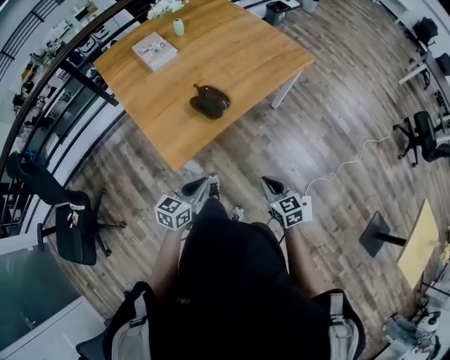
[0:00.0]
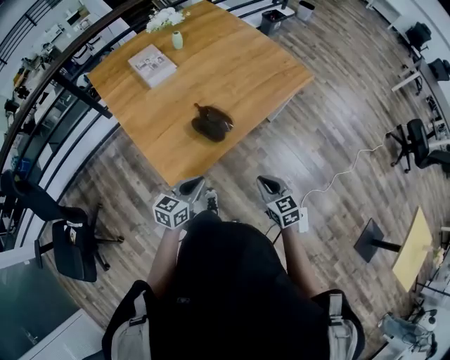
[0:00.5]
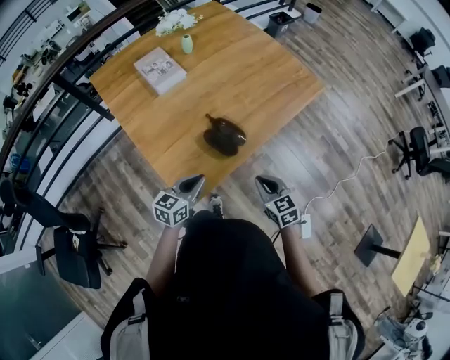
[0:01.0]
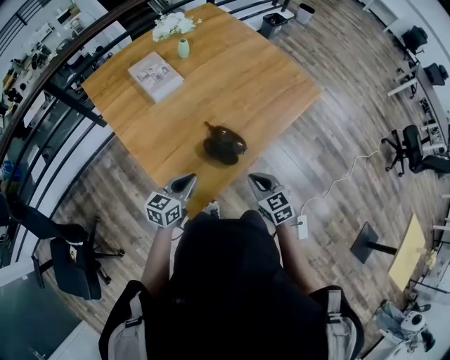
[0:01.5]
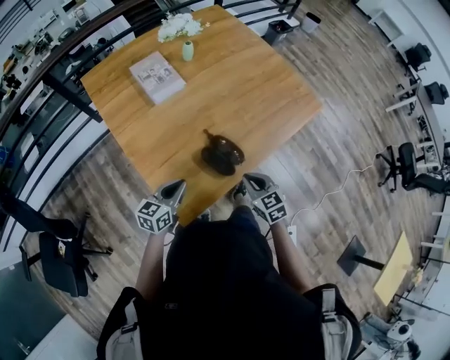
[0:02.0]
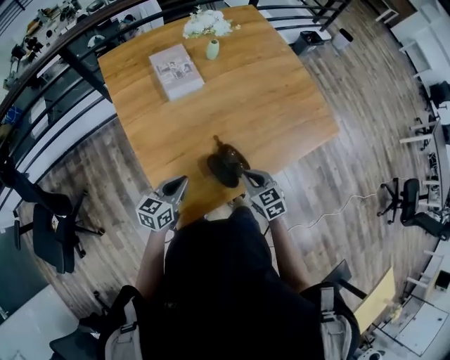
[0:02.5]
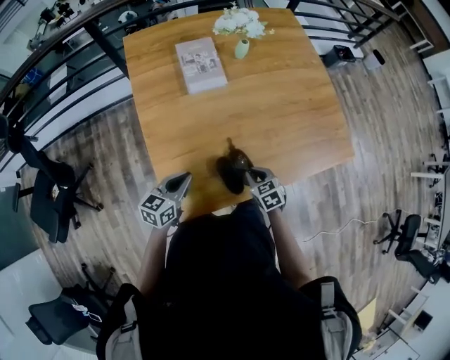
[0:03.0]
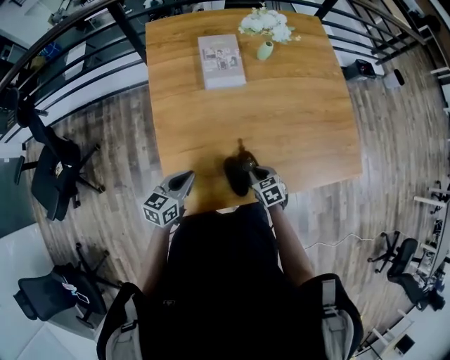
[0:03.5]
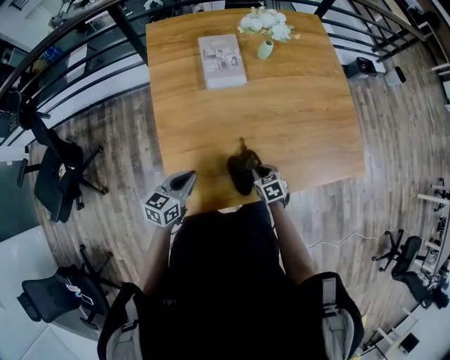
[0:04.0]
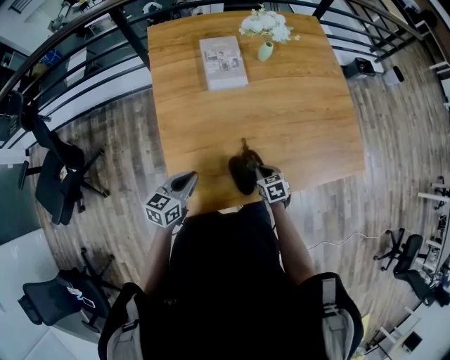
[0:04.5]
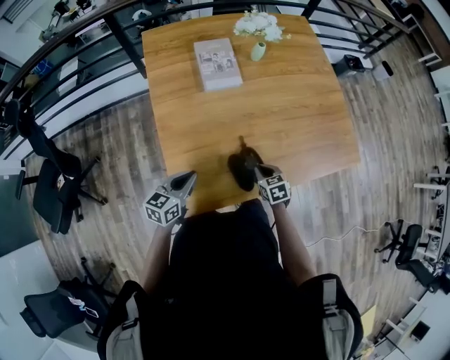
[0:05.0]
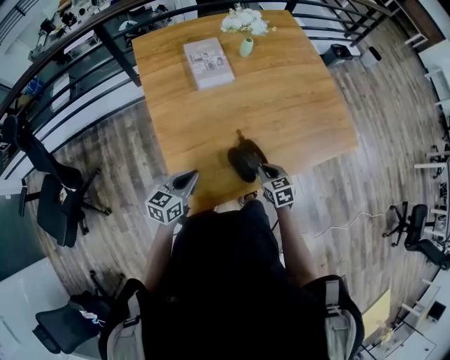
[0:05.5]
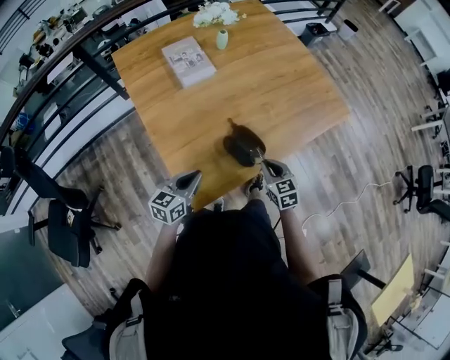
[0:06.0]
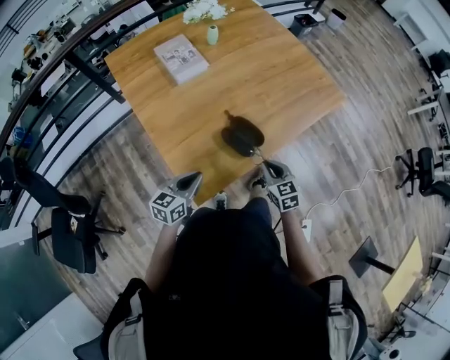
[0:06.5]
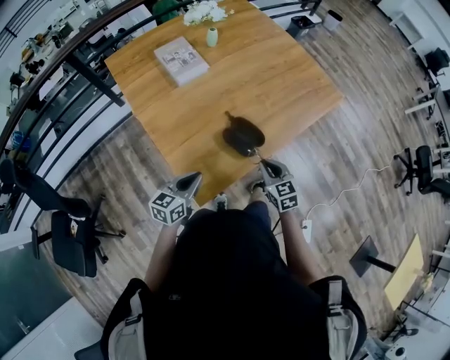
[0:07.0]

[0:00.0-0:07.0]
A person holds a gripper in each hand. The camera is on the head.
0:00.0 to 0:02.0: The two grippers go about 30 cm forward and to the left.
0:02.0 to 0:03.5: The right gripper ends up roughly 20 cm from where it was, and swivels roughly 30 degrees, while the left gripper ends up roughly 5 cm from where it was, and changes its angle by roughly 30 degrees.
0:03.5 to 0:05.0: The grippers move only a little.
0:05.0 to 0:07.0: The right gripper goes about 15 cm backward and upward, and swivels roughly 30 degrees, while the left gripper is displaced backward by roughly 10 cm, and rotates approximately 20 degrees.

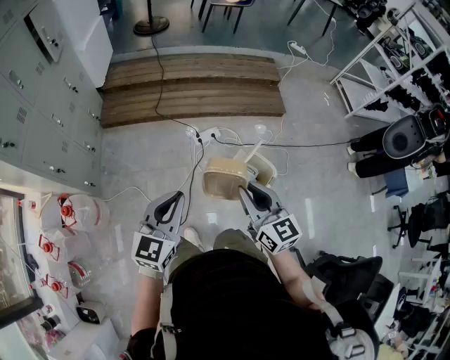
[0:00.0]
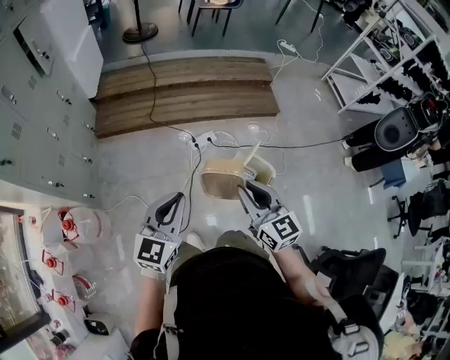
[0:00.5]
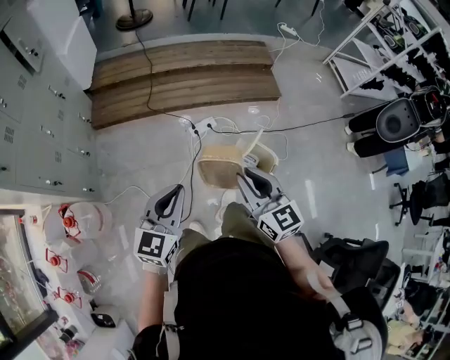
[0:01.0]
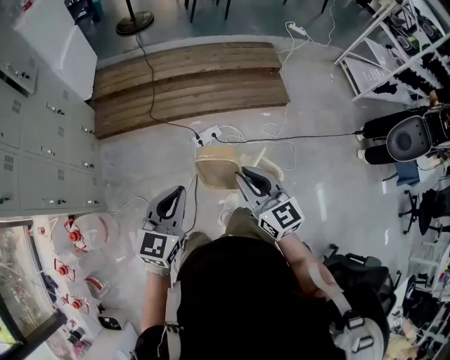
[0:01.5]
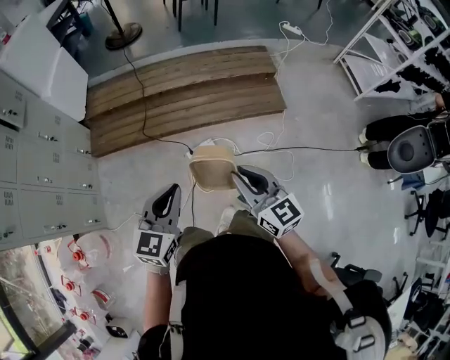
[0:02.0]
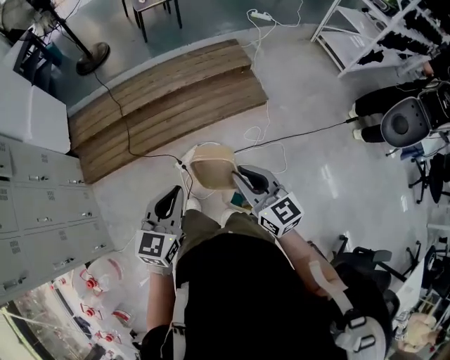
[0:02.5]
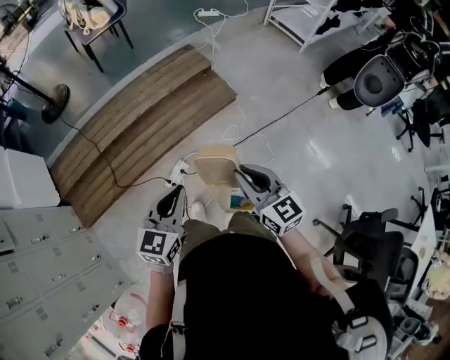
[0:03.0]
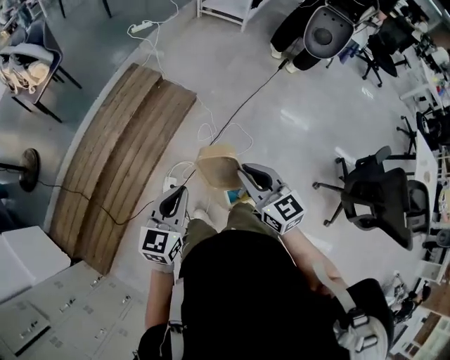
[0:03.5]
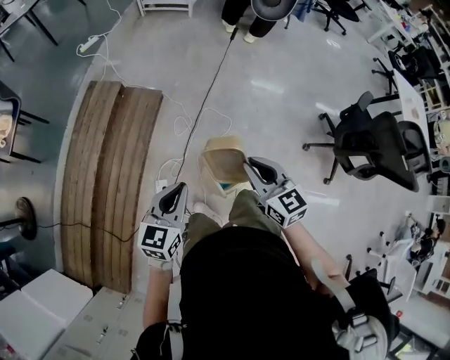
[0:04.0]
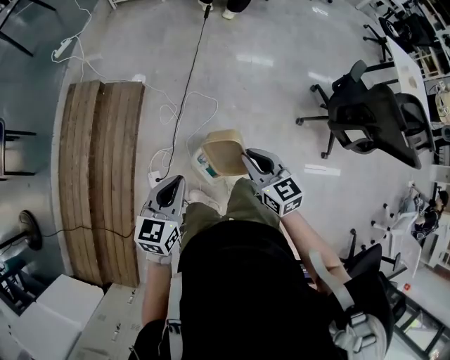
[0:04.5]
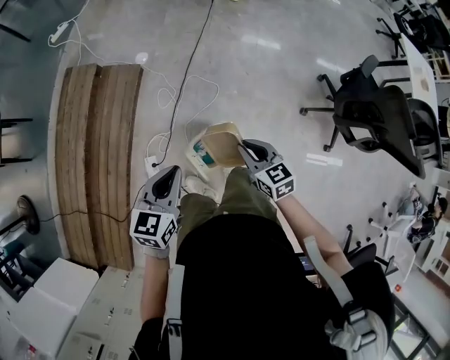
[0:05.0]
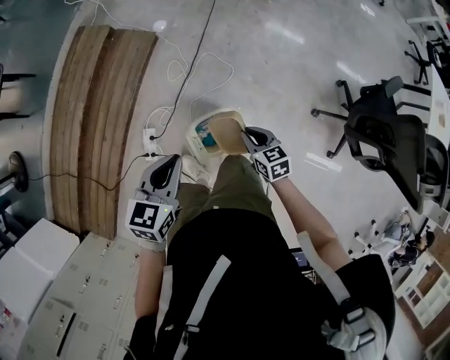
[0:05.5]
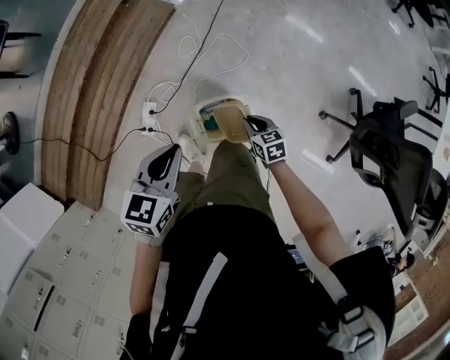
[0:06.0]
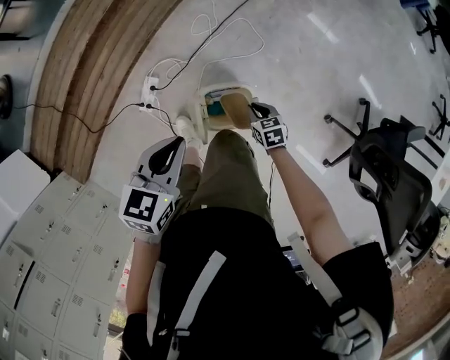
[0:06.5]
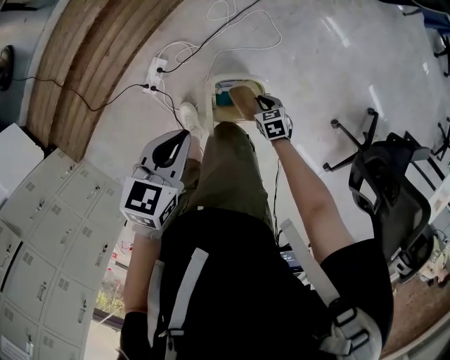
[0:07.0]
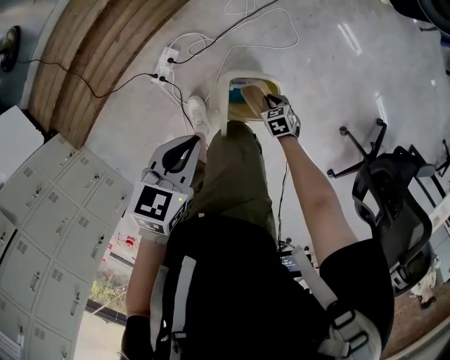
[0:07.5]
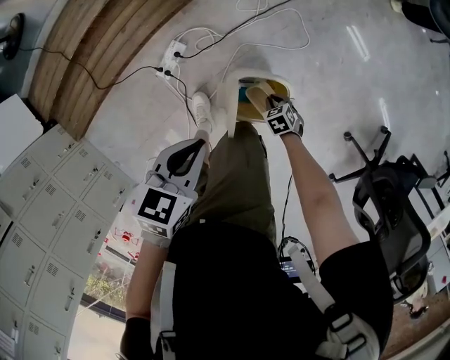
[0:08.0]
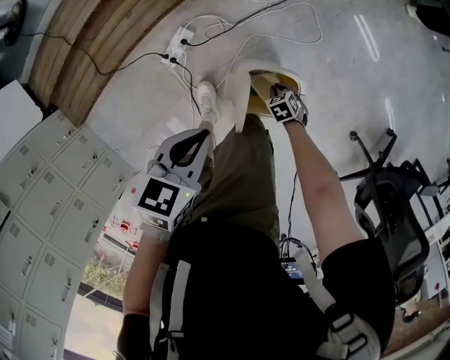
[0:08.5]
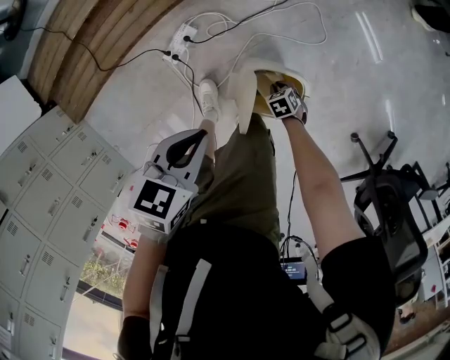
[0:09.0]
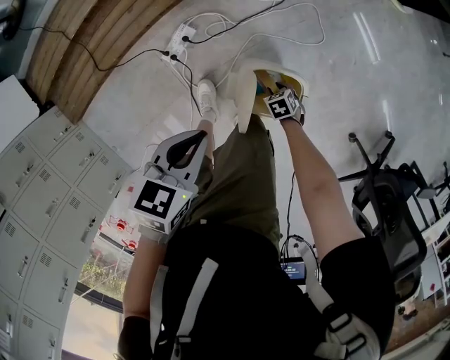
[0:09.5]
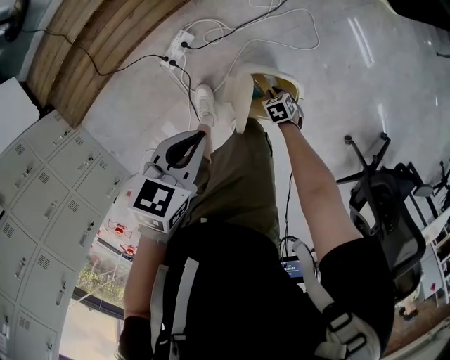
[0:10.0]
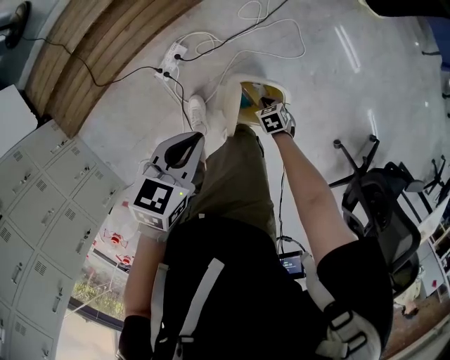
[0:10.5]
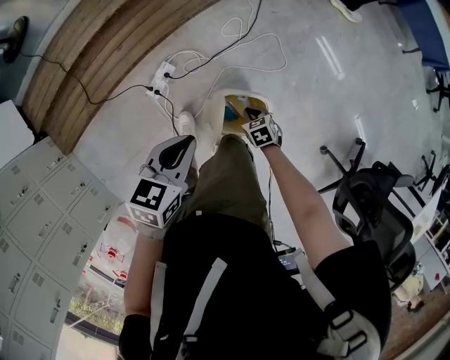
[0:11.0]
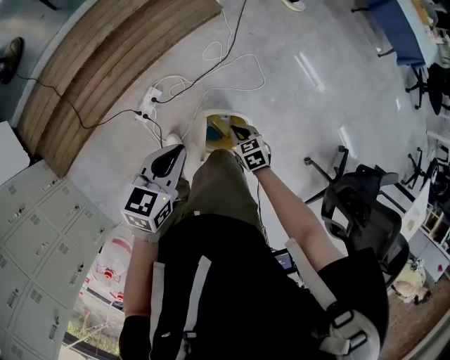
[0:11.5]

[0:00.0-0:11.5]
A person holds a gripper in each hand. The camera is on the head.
0:00.0 to 0:02.0: The grippers both shift forward and to the right by approximately 35 cm.
0:02.0 to 0:04.0: The right gripper moves some 20 cm, and rotates roughly 70 degrees; the left gripper moves roughly 30 cm, and rotates some 70 degrees.
0:04.0 to 0:06.0: The left gripper is displaced downward and to the right by some 15 cm, and turns by about 20 degrees, while the right gripper heads downward, covering about 35 cm, and points its fingers approximately 30 degrees further downward.
0:06.0 to 0:07.5: The left gripper travels downward and to the left by approximately 10 cm. The right gripper goes some 20 cm downward, and swivels about 30 degrees.
0:07.5 to 0:09.5: The right gripper is displaced downward by some 10 cm, and opens up, while the left gripper ends up approximately 5 cm from where it was.
0:09.5 to 0:11.5: The right gripper moves upward, approximately 25 cm, changes its angle by some 20 degrees, and closes its fingers, while the left gripper moves upward, about 10 cm.

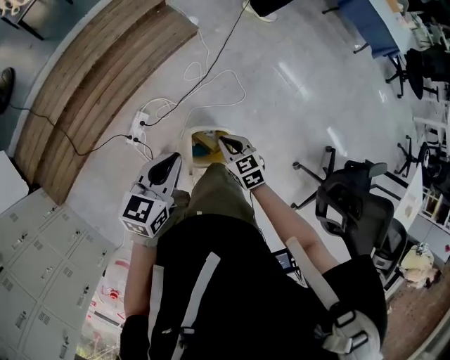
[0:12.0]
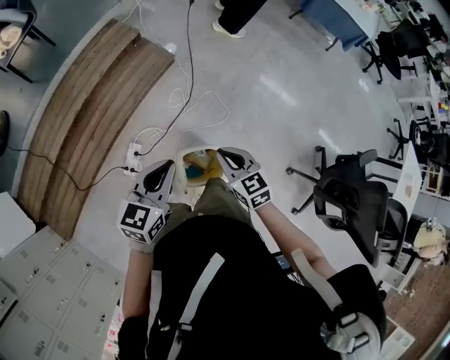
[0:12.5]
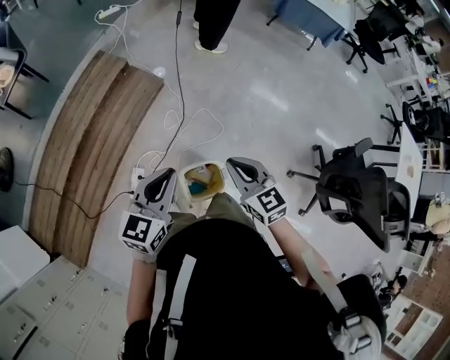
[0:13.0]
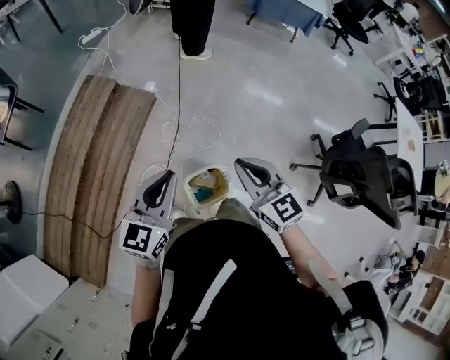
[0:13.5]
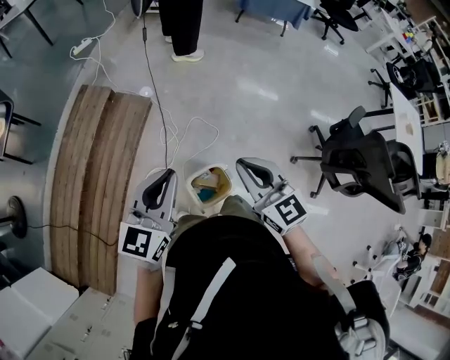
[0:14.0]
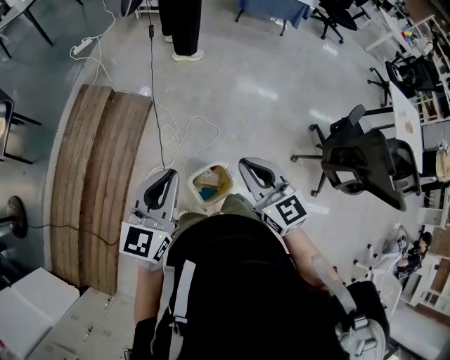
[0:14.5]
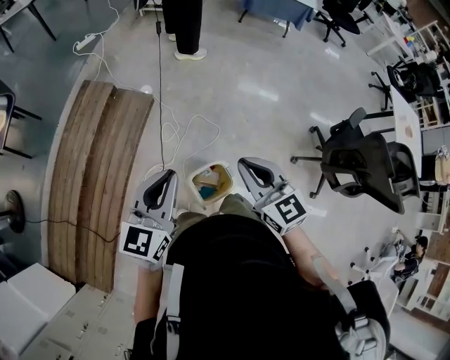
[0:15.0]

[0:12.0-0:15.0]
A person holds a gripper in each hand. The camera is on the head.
0:12.0 to 0:13.5: The right gripper travels upward by roughly 30 cm, and changes its angle by approximately 40 degrees; the left gripper heads upward, covering about 15 cm, and turns by about 30 degrees.
0:13.5 to 0:15.0: The grippers move only a little.

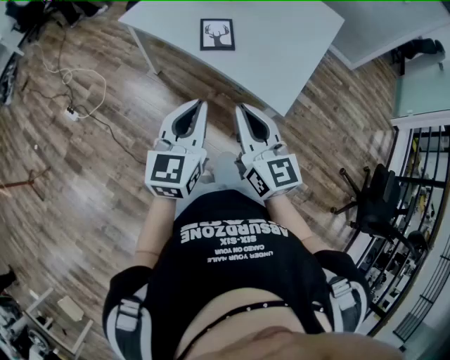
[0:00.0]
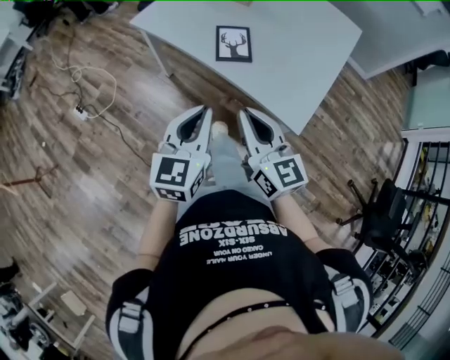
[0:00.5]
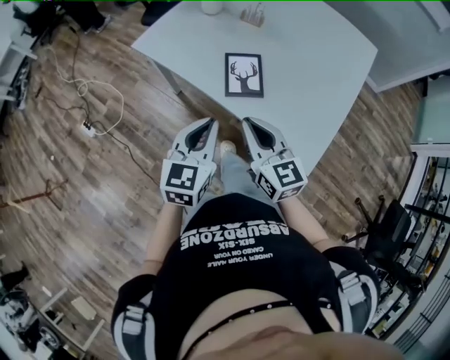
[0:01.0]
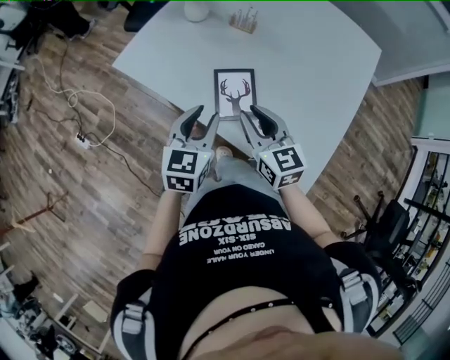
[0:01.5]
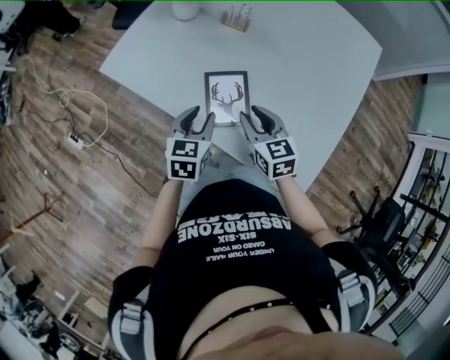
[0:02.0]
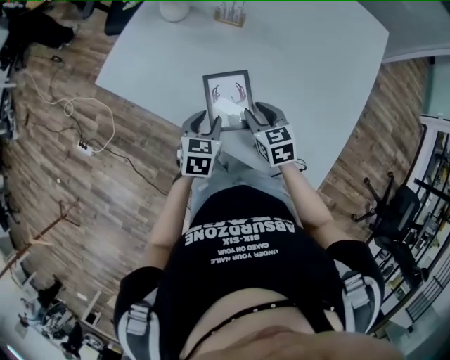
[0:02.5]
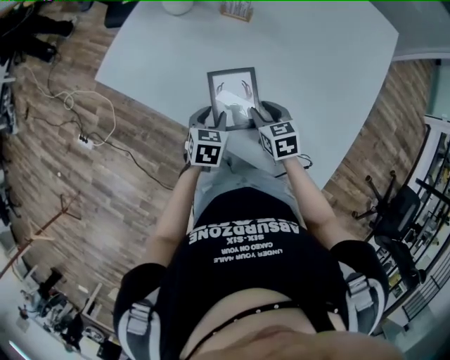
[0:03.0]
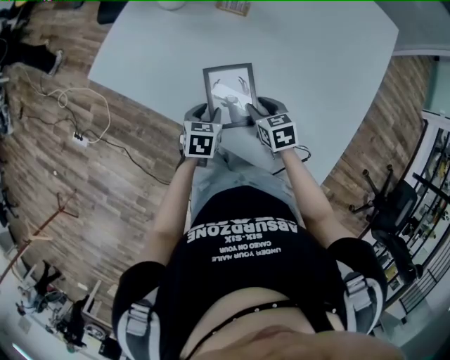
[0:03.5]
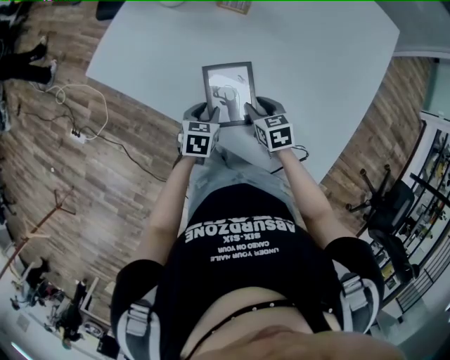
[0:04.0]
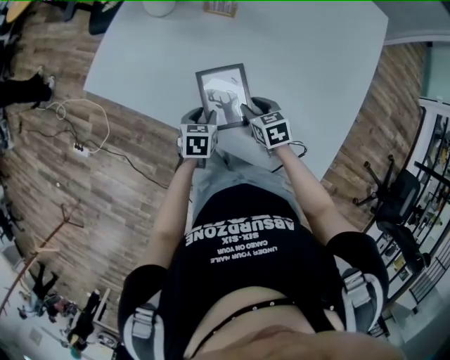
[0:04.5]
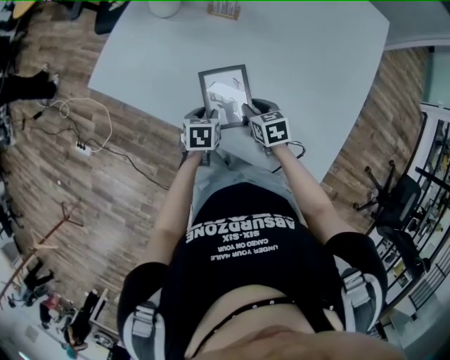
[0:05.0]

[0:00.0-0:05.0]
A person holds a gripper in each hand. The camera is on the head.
0:00.0 to 0:02.5: The pair of grippers is taken forward, about 40 cm. The grippers both shift downward by some 25 cm. The right gripper points its fingers some 40 degrees further downward, and opens its fingers. Meanwhile the left gripper points its fingers about 40 degrees further downward, and opens its fingers.
0:02.5 to 0:05.0: Both grippers travel together downward, some 10 cm.
